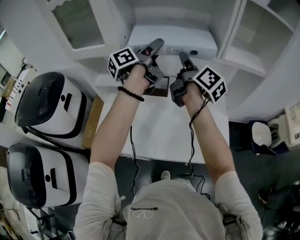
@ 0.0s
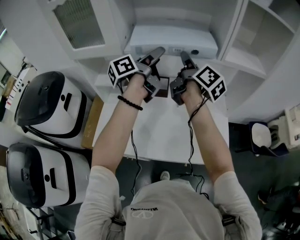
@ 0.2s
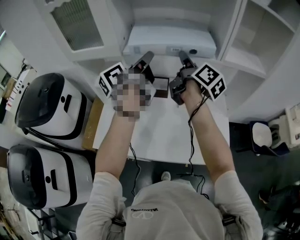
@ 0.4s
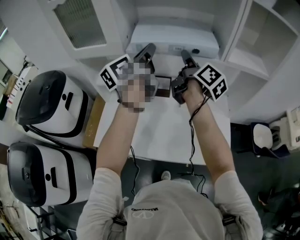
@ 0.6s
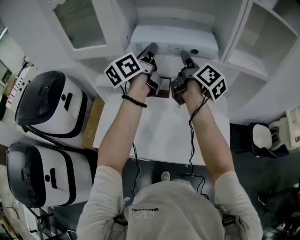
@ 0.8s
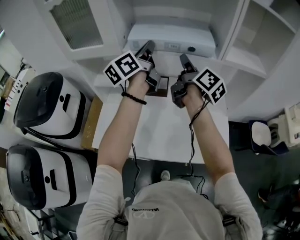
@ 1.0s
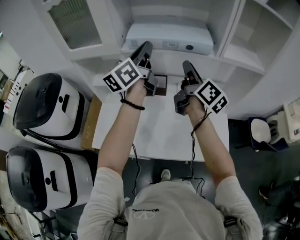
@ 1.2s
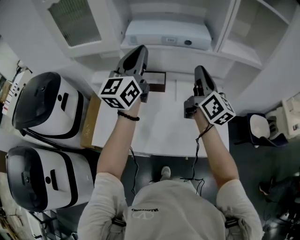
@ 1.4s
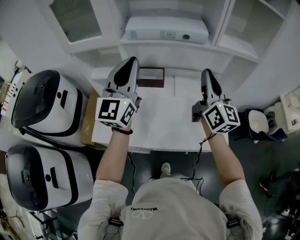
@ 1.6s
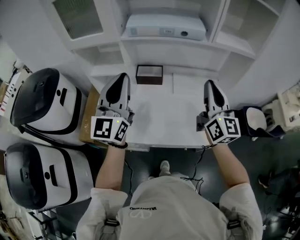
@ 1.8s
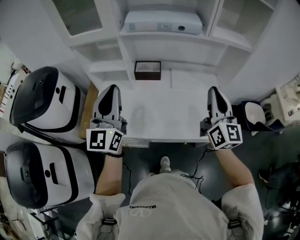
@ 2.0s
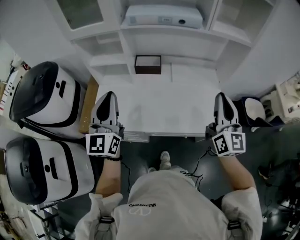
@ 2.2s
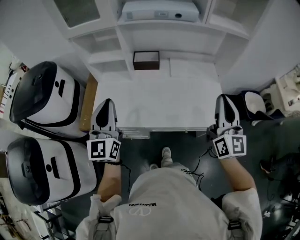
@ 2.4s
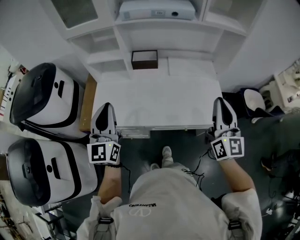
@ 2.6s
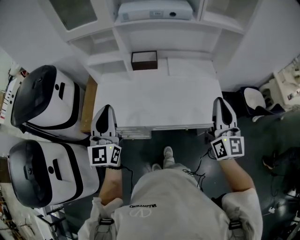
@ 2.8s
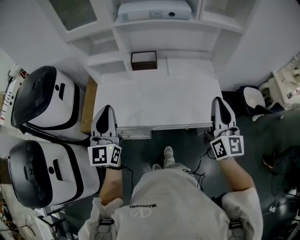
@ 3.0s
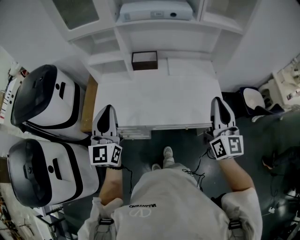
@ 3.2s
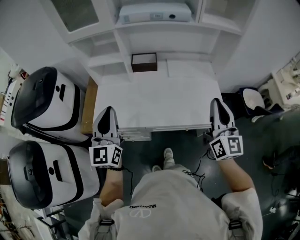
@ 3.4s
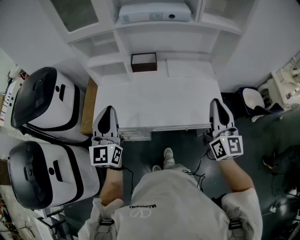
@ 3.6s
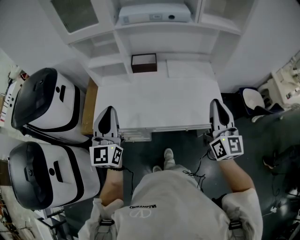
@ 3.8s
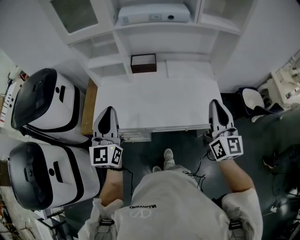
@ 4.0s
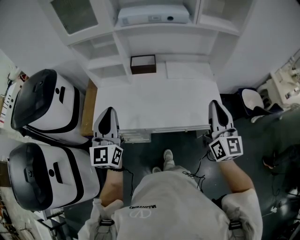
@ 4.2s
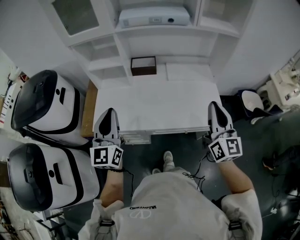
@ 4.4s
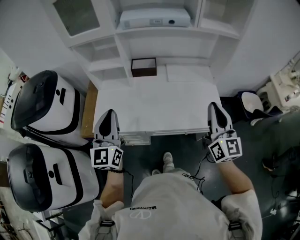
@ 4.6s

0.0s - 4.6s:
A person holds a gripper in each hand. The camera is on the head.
0.0s - 1.6s: The left gripper swings forward and backward, about 20 cm each way, with 2 reversals, rolls clockwise, seen from behind, by about 80 degrees, and closes up. Meanwhile the right gripper goes about 15 cm backward and to the right, and twists about 40 degrees counterclockwise, seen from behind.
1.6s - 3.0s: The right gripper moves backward, approximately 25 cm. The left gripper travels backward and downward by about 25 cm.
3.0s - 4.6s: The two grippers keep their place.

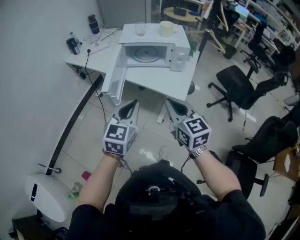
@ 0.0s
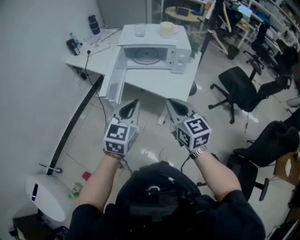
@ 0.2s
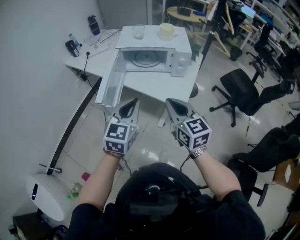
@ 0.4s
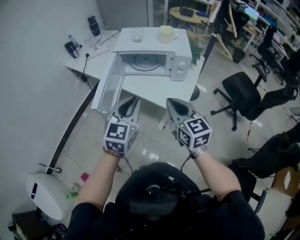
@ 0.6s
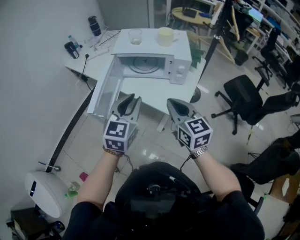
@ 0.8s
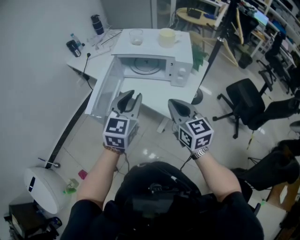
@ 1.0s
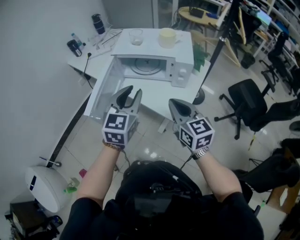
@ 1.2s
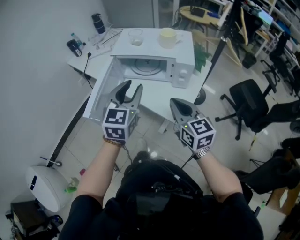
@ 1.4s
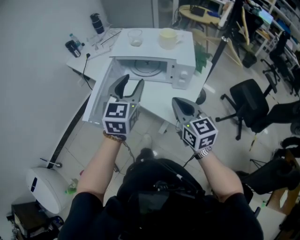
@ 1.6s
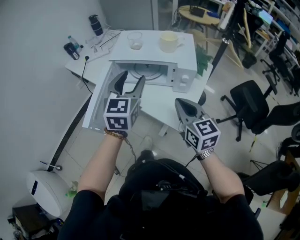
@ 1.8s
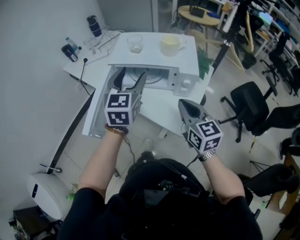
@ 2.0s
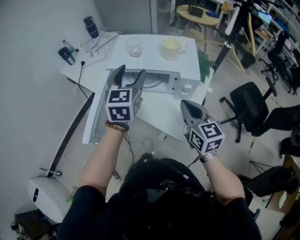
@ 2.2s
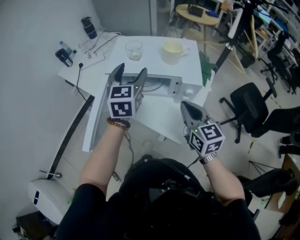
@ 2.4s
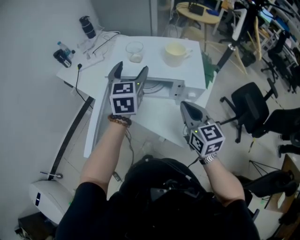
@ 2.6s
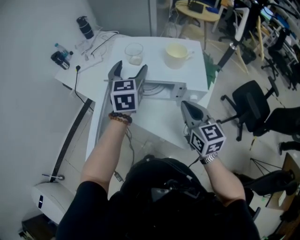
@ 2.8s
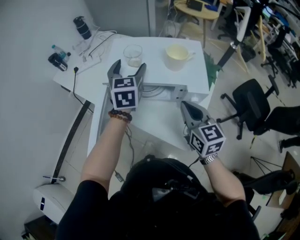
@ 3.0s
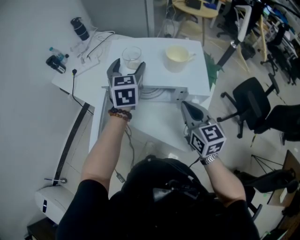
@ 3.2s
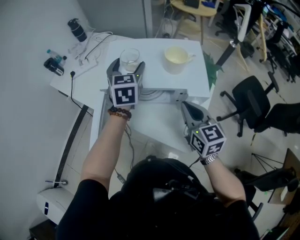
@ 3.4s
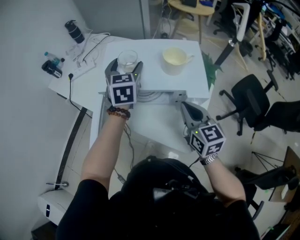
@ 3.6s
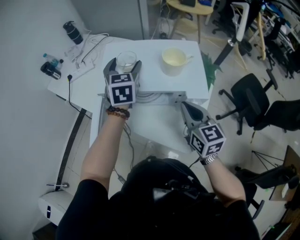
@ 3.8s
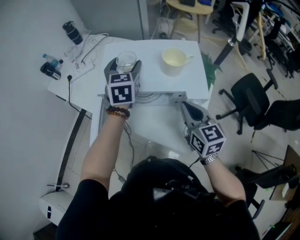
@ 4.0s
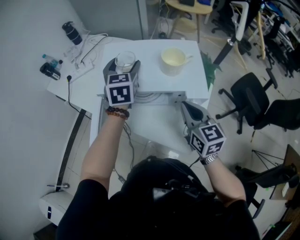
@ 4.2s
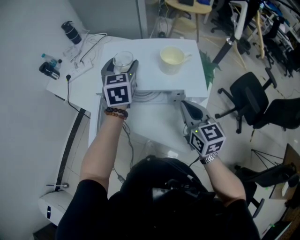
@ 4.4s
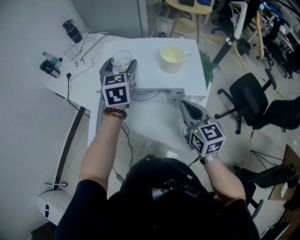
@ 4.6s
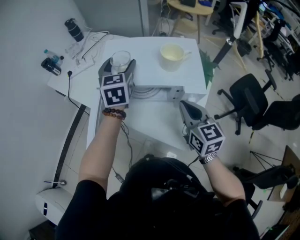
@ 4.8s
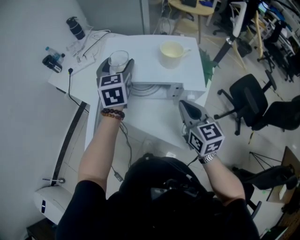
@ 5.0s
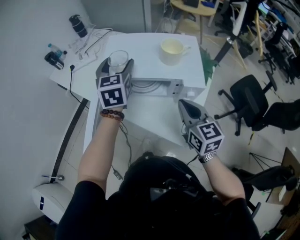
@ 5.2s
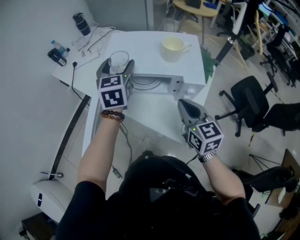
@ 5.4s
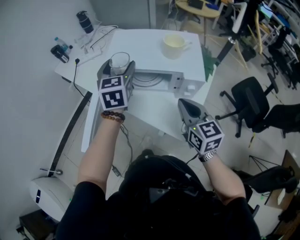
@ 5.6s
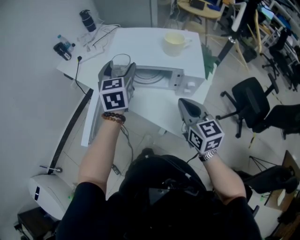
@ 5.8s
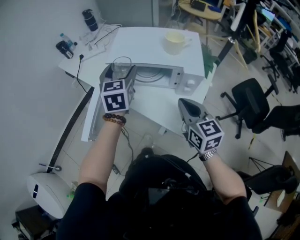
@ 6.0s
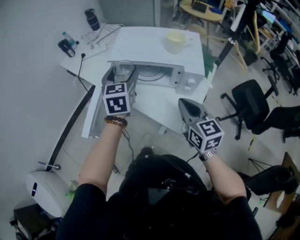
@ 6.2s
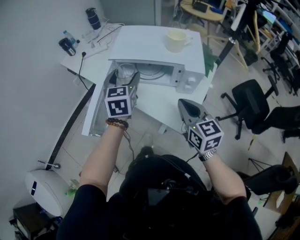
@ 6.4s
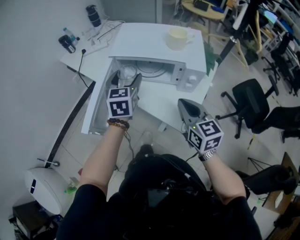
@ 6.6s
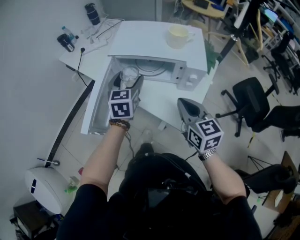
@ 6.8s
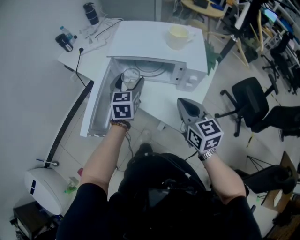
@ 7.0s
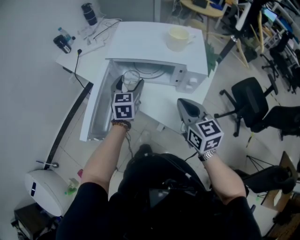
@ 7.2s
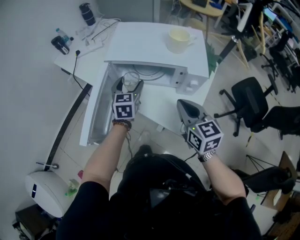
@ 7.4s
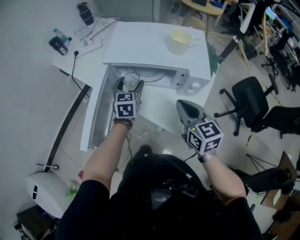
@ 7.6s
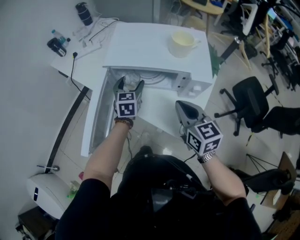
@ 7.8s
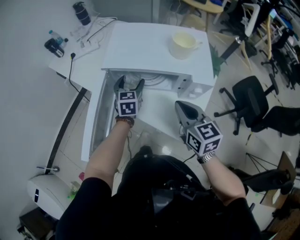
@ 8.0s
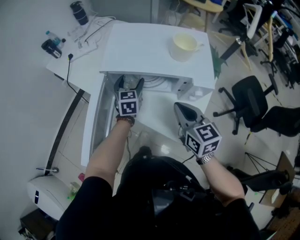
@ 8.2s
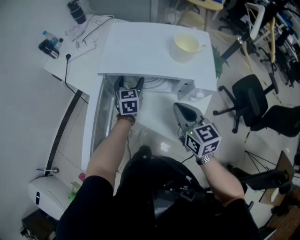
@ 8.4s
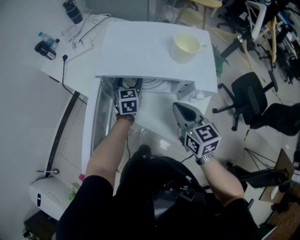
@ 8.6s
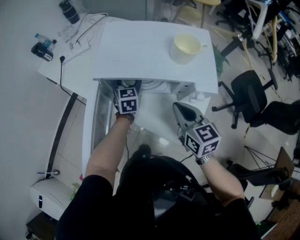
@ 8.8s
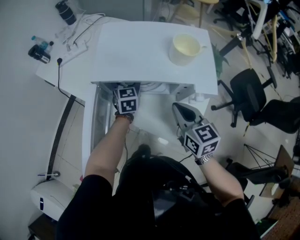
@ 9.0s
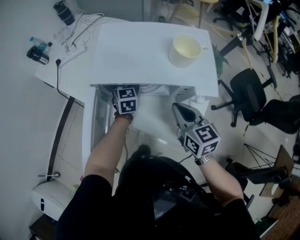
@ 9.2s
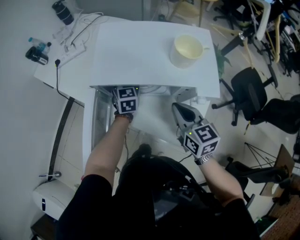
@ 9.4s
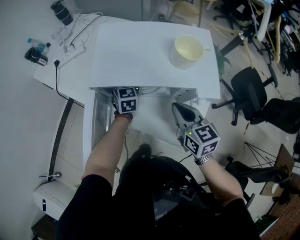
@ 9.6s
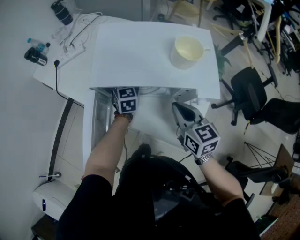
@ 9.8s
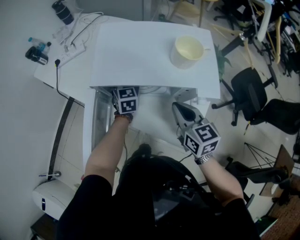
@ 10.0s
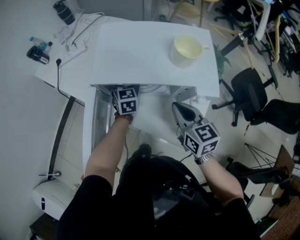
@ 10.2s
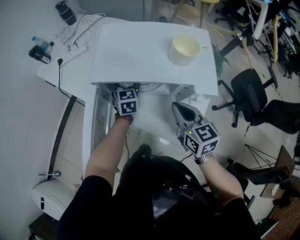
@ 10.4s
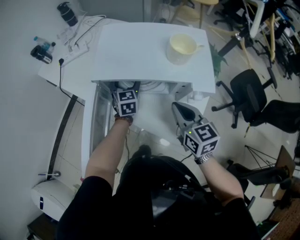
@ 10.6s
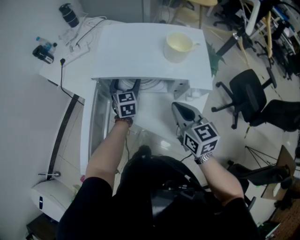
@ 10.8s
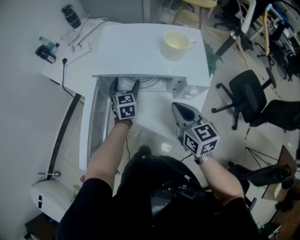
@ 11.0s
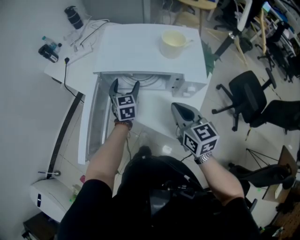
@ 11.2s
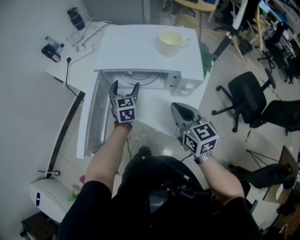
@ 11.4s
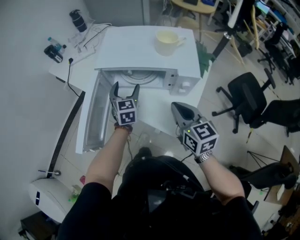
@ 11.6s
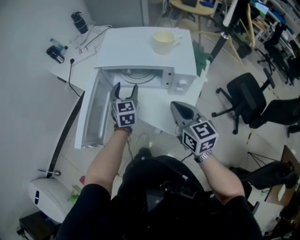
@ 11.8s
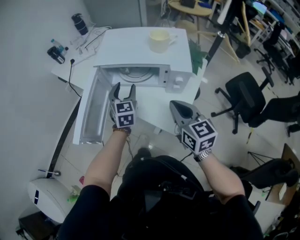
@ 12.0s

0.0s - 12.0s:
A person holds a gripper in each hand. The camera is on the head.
0.0s - 1.6s: The grippers both shift forward and to the right by about 25 cm. The left gripper opens.
1.6s - 3.0s: The left gripper shifts about 25 cm forward, and opens up. Meanwhile the right gripper moves forward, roughly 15 cm.
3.0s - 4.4s: The left gripper travels forward by some 5 cm.
4.4s - 6.0s: Both grippers move backward, roughly 15 cm.
6.0s - 7.6s: The left gripper travels downward by some 15 cm.
7.6s - 9.0s: The left gripper is displaced forward and downward by approximately 15 cm, while the right gripper is displaced forward by approximately 5 cm.
9.0s - 10.4s: There are only small adjustments of the grippers.
10.4s - 12.0s: The grippers both shift backward and upward by some 15 cm. The left gripper closes up.

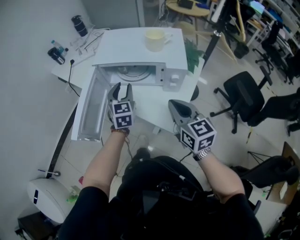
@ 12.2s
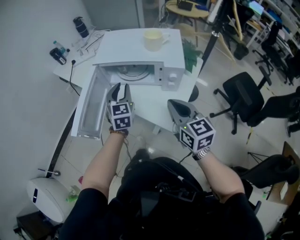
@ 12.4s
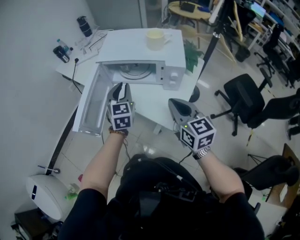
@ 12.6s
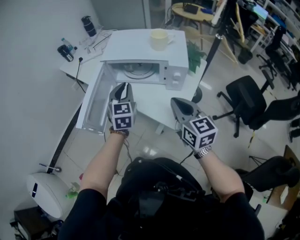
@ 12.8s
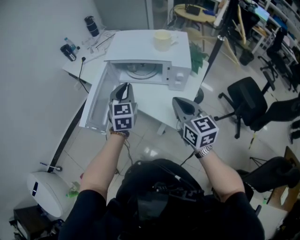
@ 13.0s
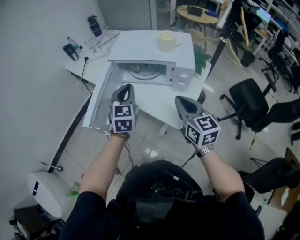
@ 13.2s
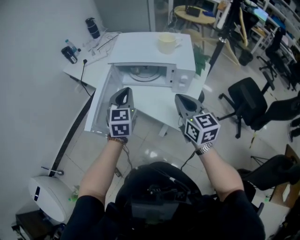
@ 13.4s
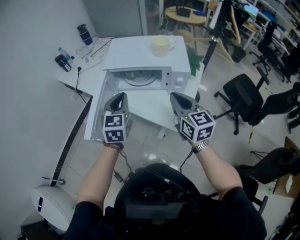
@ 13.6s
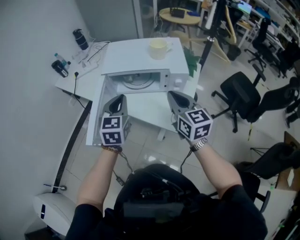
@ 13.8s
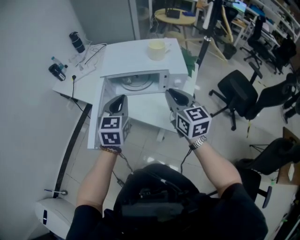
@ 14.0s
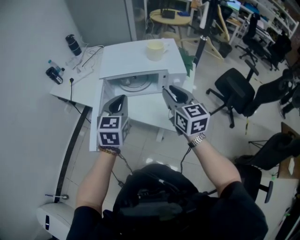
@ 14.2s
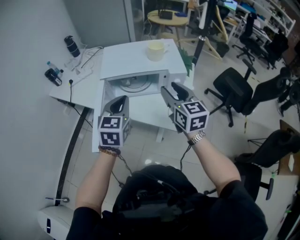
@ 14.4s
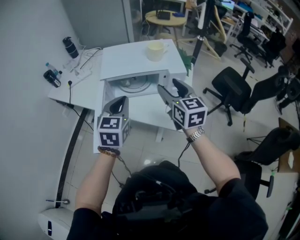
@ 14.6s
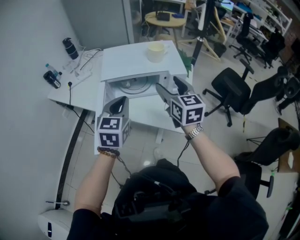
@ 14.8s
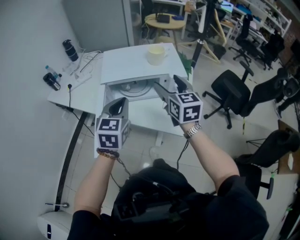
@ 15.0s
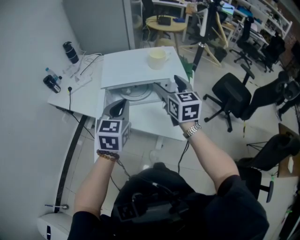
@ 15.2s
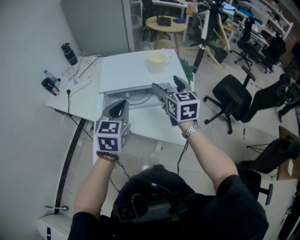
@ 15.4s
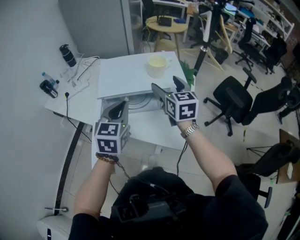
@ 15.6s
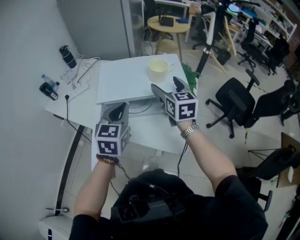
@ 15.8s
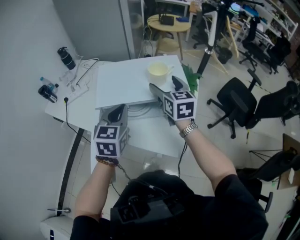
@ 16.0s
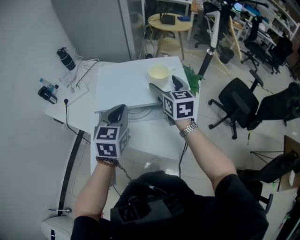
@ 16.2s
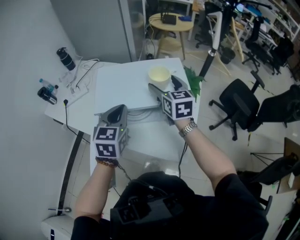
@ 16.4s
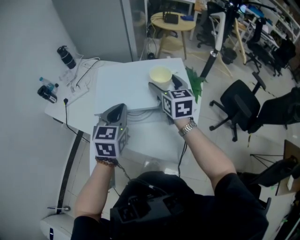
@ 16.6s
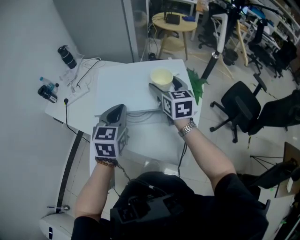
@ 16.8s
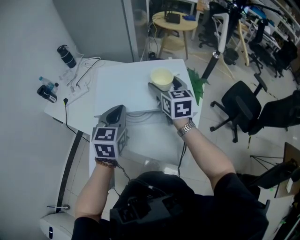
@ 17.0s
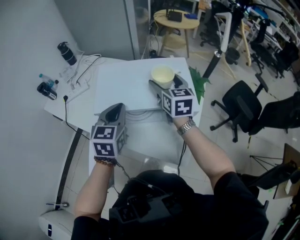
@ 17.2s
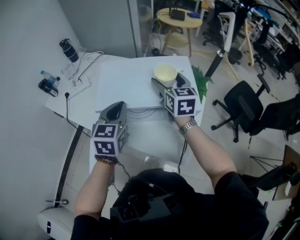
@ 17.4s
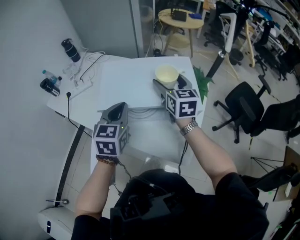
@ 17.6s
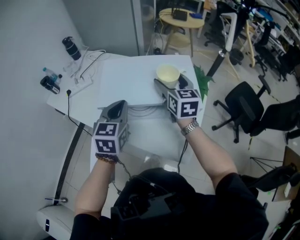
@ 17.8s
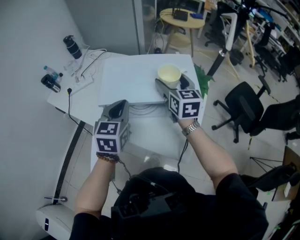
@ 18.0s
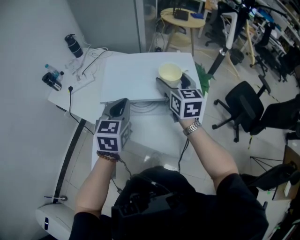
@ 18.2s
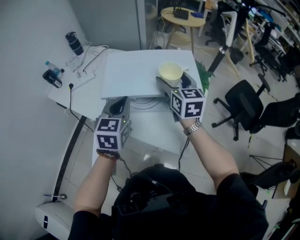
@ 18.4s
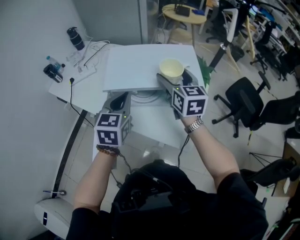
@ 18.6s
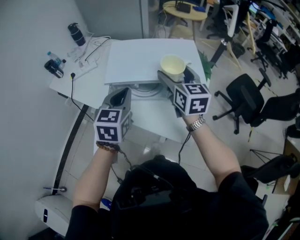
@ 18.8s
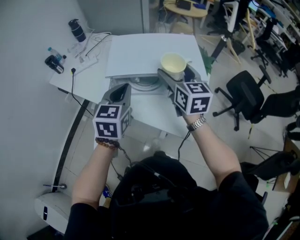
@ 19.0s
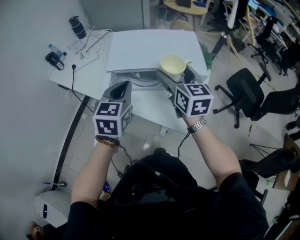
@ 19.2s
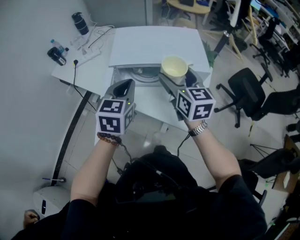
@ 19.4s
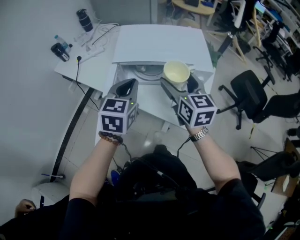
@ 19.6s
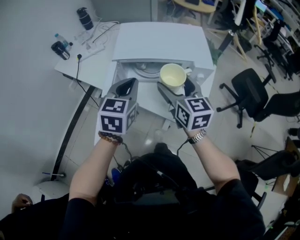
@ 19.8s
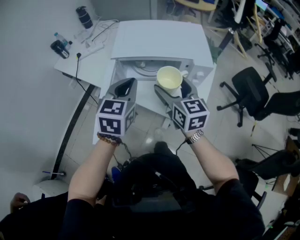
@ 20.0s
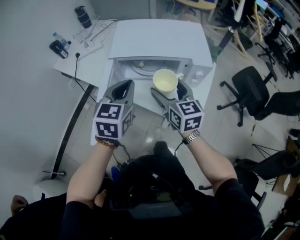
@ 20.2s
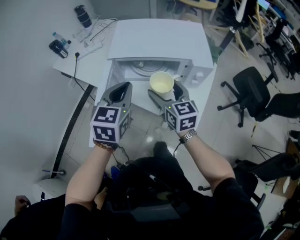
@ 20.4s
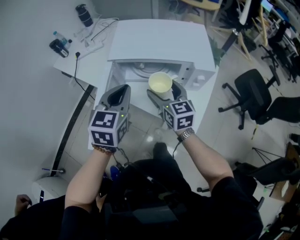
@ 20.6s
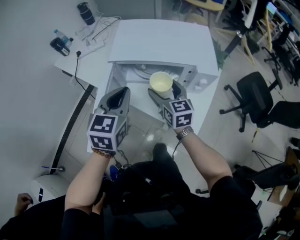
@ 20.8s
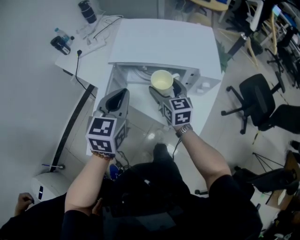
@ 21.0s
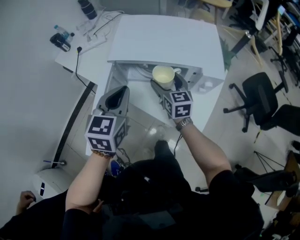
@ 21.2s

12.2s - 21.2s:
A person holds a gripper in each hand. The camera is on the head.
12.2s - 13.8s: The right gripper moves roughly 5 cm. The left gripper heads upward and backward, covering about 10 cm, and closes its fingers.
13.8s - 15.2s: The right gripper travels forward by approximately 10 cm, and opens.
15.2s - 16.6s: The grippers both shift forward by roughly 15 cm.
16.6s - 18.2s: There are only small adjustments of the grippers.
18.2s - 19.8s: The right gripper travels backward by about 20 cm; the left gripper travels backward by about 10 cm.
19.8s - 21.2s: The right gripper heads downward and forward, covering some 15 cm.
